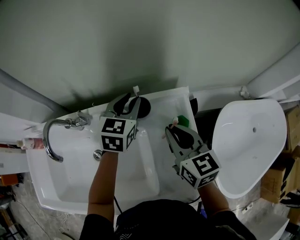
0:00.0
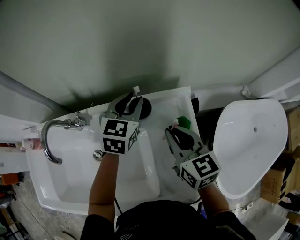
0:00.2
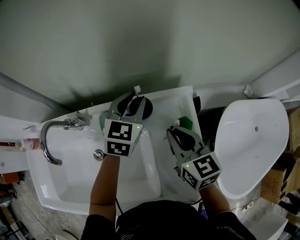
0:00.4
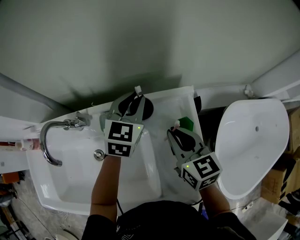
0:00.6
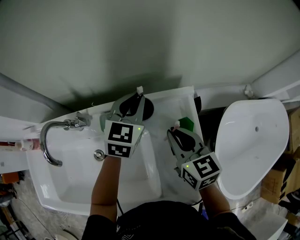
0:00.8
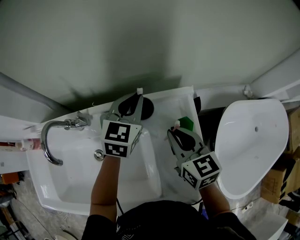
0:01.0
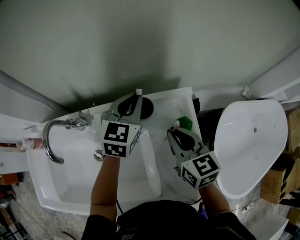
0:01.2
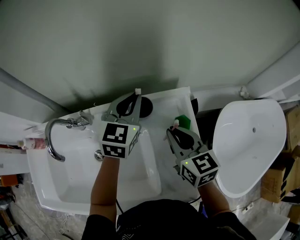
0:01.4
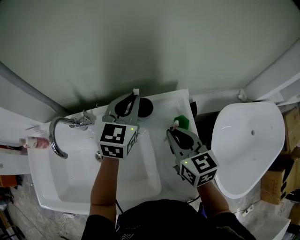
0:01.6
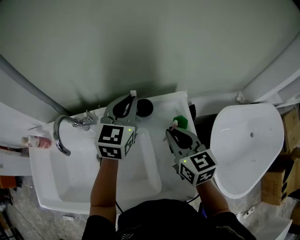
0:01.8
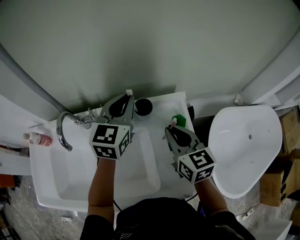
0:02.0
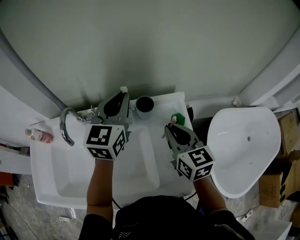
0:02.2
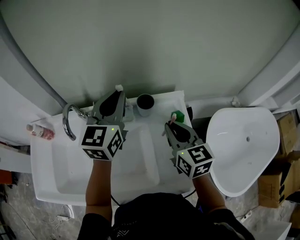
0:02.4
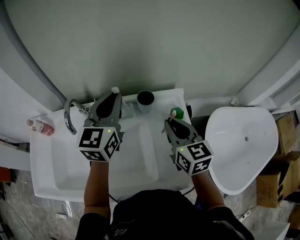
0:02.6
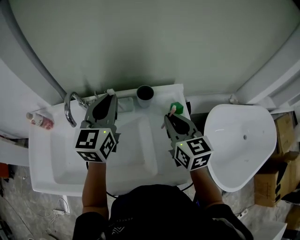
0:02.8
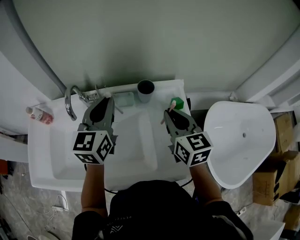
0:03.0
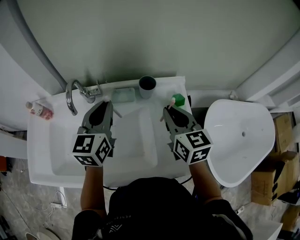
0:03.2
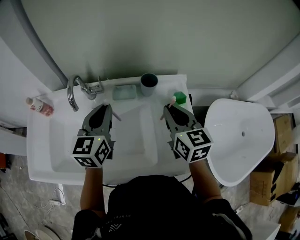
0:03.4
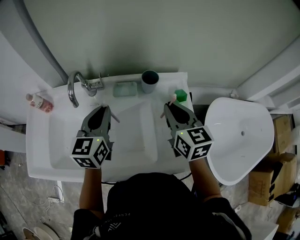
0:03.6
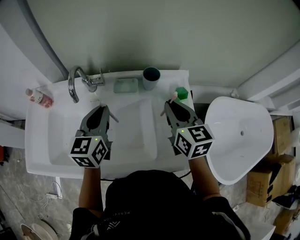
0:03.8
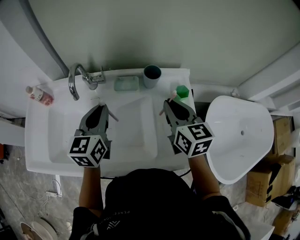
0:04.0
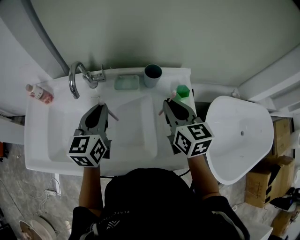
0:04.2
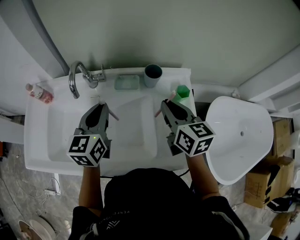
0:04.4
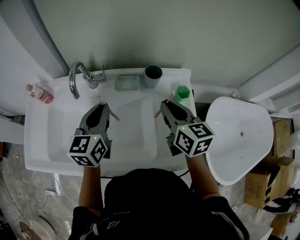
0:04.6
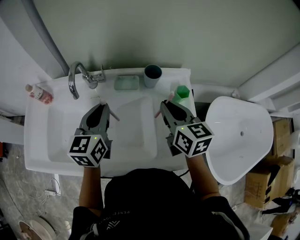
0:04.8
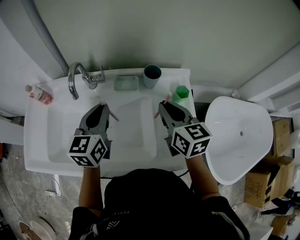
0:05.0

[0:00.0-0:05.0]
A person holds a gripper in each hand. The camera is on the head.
0:00.0 to 0:01.6: The left gripper goes roughly 5 cm upward, and closes.
0:01.6 to 0:03.4: The right gripper heads backward and upward, covering approximately 10 cm; the left gripper goes roughly 20 cm backward and to the left.
0:03.4 to 0:05.0: The grippers move only a little.

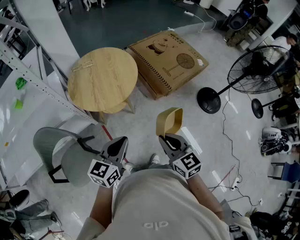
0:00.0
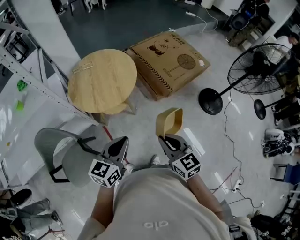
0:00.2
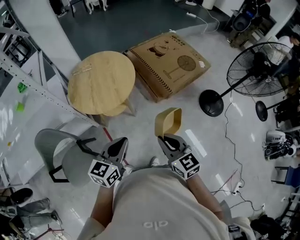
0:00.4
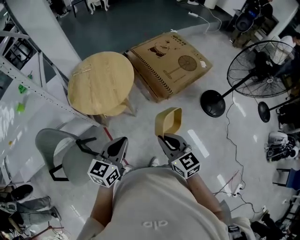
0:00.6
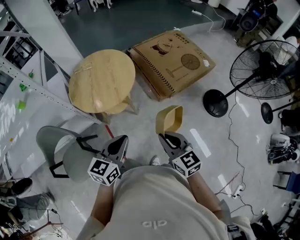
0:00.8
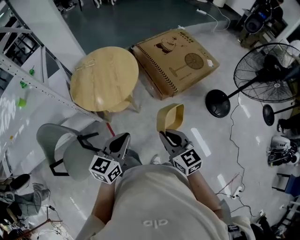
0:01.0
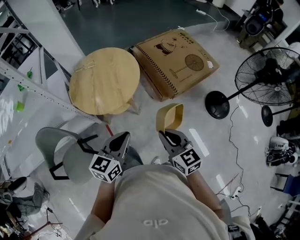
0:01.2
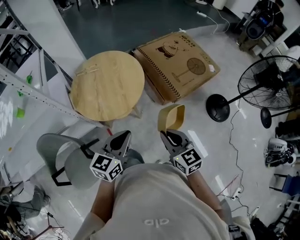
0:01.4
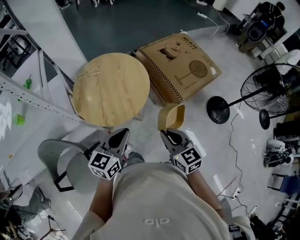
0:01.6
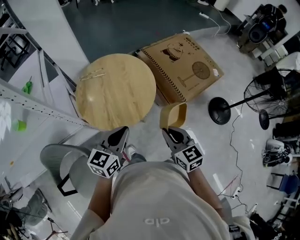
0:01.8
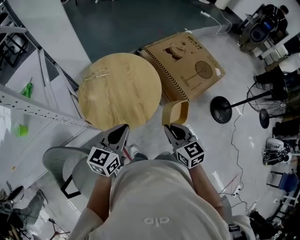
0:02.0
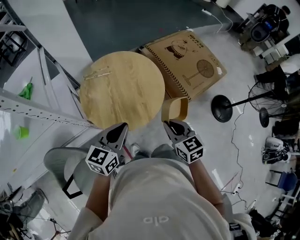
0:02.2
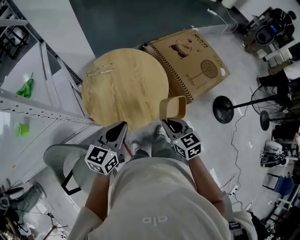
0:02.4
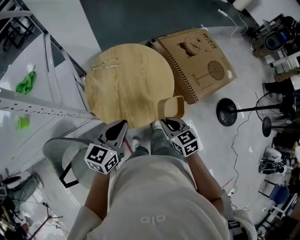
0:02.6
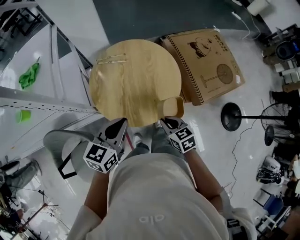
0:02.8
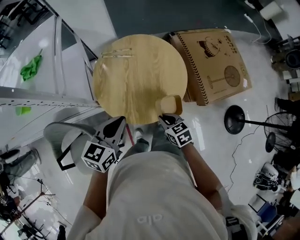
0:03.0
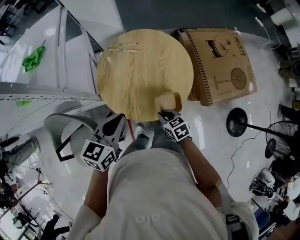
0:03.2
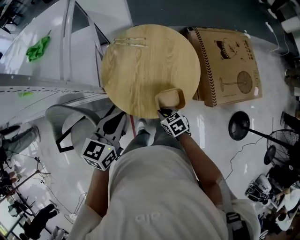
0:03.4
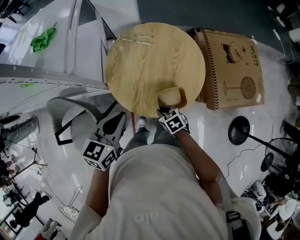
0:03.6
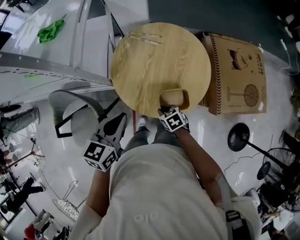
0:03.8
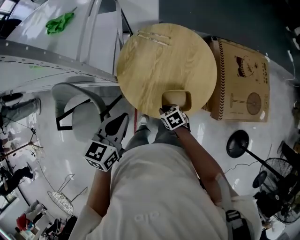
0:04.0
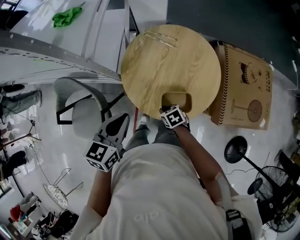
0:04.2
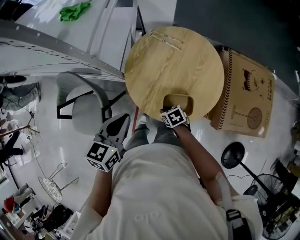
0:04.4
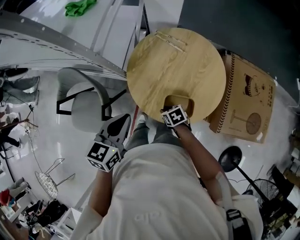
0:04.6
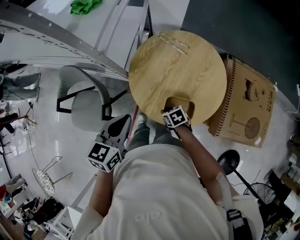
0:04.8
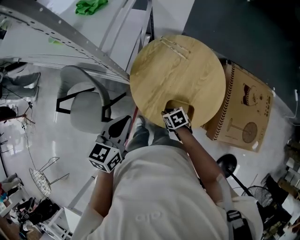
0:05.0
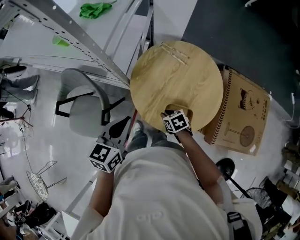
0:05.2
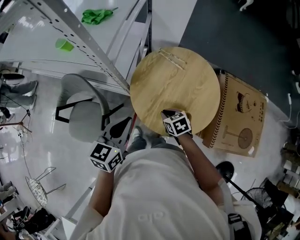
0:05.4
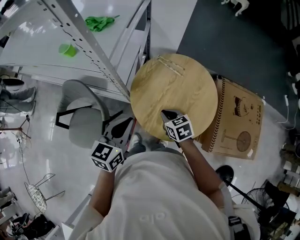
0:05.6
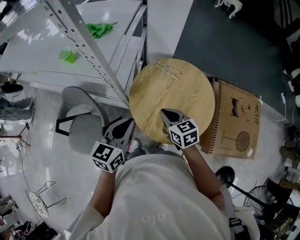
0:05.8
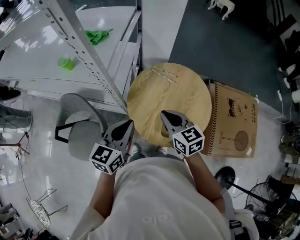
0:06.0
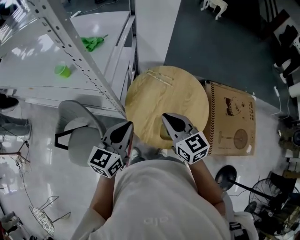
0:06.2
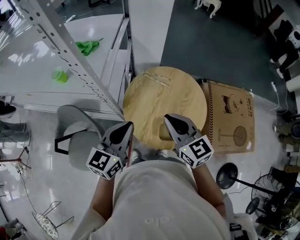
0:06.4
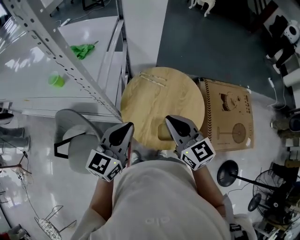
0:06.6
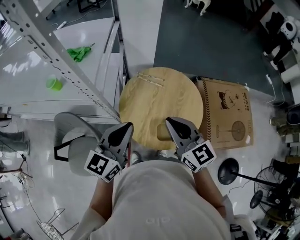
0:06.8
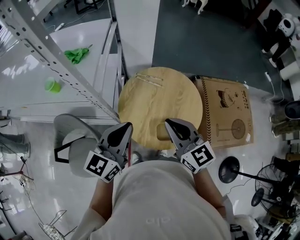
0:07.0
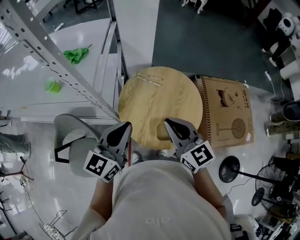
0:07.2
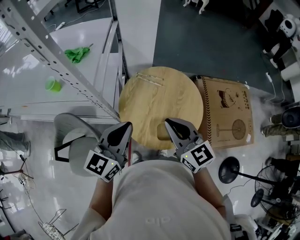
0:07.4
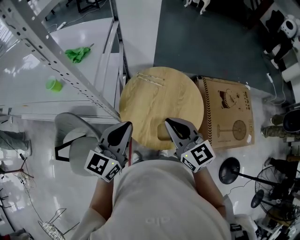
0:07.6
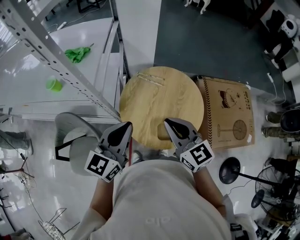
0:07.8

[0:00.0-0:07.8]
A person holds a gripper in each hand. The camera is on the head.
0:00.0 to 0:01.6: The two grippers go approximately 15 cm forward.
0:01.6 to 0:03.2: The left gripper moves some 20 cm, and changes its angle by roughly 20 degrees, while the right gripper moves some 30 cm, and swivels approximately 40 degrees.
0:03.2 to 0:04.6: The left gripper ends up roughly 5 cm from where it was, and swivels approximately 30 degrees. Meanwhile the right gripper is displaced downward by roughly 10 cm, and turns by some 30 degrees.
0:04.6 to 0:06.2: The left gripper travels upward and forward by roughly 10 cm. The right gripper is displaced upward by some 35 cm, and angles its fingers upward, by roughly 40 degrees.
0:06.2 to 0:07.8: The right gripper ends up some 5 cm from where it was; the left gripper moves approximately 5 cm.

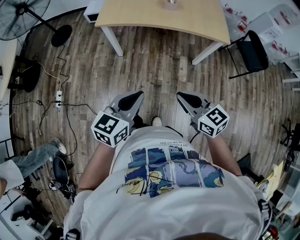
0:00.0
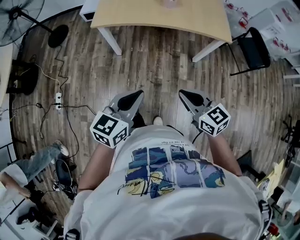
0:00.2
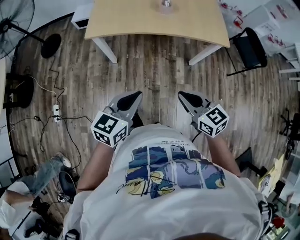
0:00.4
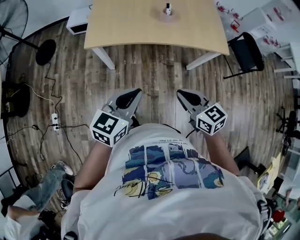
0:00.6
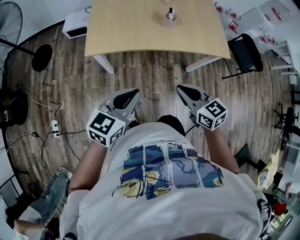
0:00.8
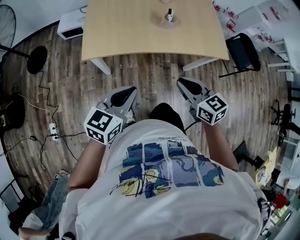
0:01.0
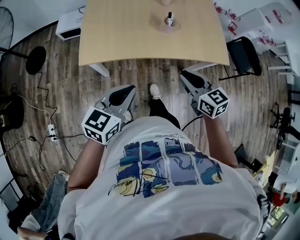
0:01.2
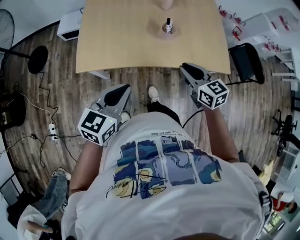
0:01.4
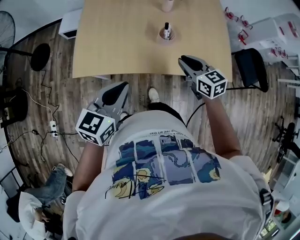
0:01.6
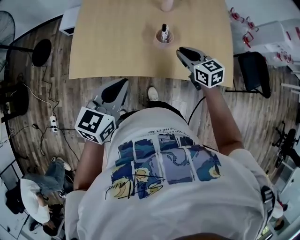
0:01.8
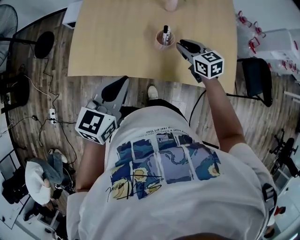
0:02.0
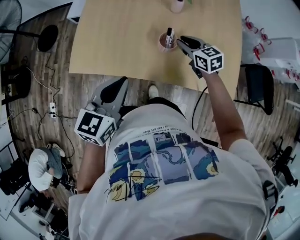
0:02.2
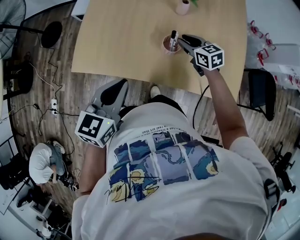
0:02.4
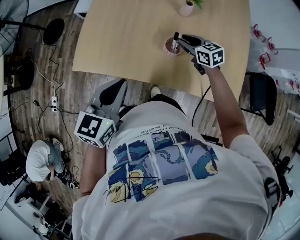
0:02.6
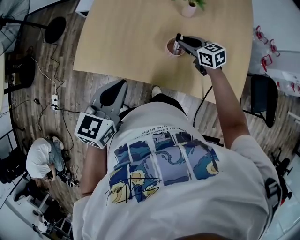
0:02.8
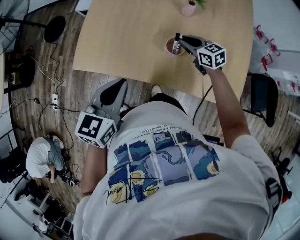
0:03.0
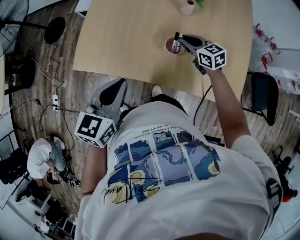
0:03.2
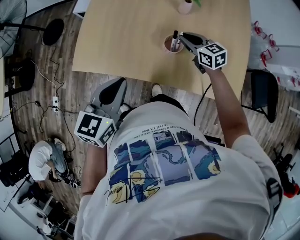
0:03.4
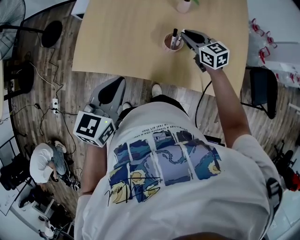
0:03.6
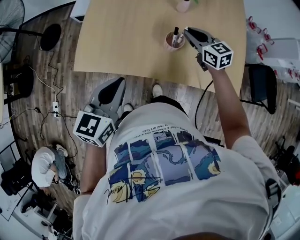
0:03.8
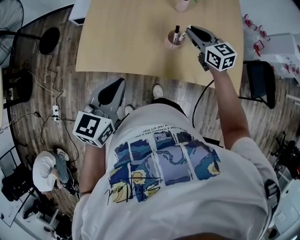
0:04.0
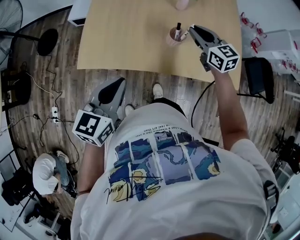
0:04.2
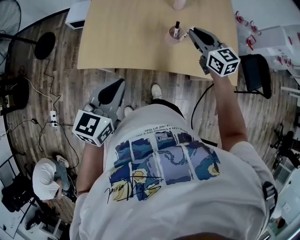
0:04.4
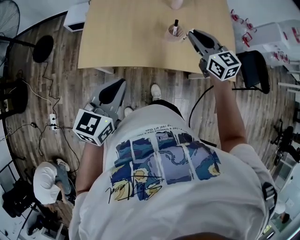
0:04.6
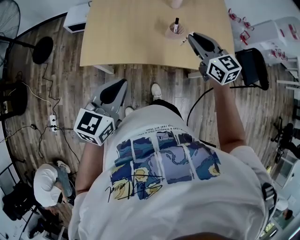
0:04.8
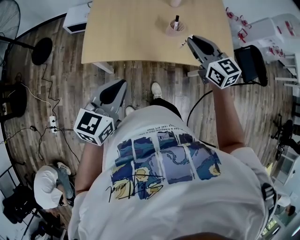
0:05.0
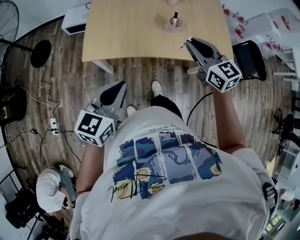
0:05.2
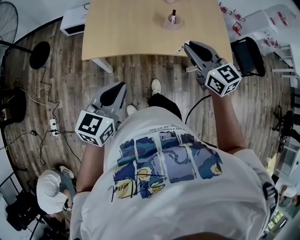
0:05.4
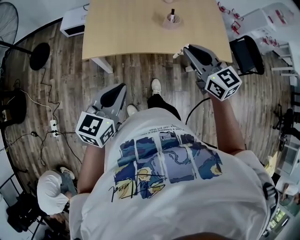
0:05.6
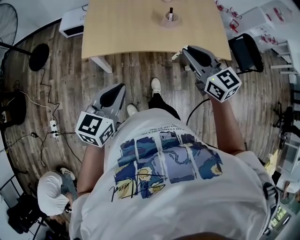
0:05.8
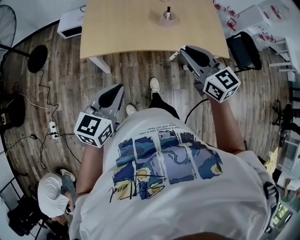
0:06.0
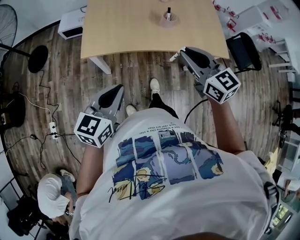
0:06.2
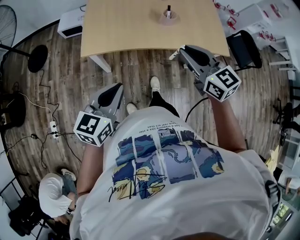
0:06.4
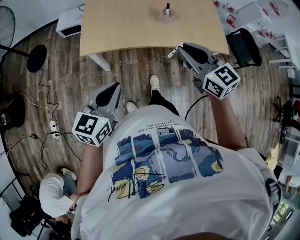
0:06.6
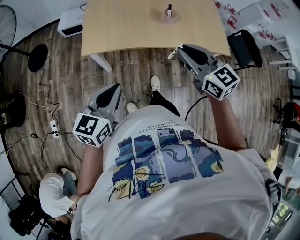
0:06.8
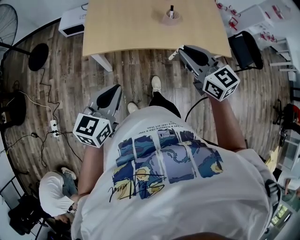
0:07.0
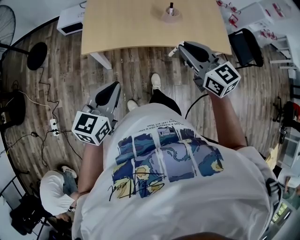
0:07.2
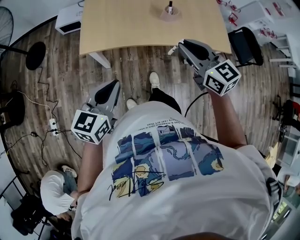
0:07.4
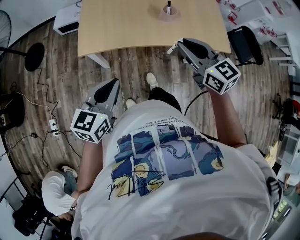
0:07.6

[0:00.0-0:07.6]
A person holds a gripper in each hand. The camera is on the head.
0:00.0 to 0:01.6: Both grippers are carried forward, some 50 cm.
0:01.6 to 0:03.0: The right gripper moves forward and downward, about 20 cm, and turns by about 20 degrees. Meanwhile the left gripper shifts about 5 cm forward.
0:03.0 to 0:04.6: The left gripper goes roughly 10 cm to the left and backward. The right gripper travels upward and backward by roughly 20 cm, and swivels some 30 degrees.
0:04.6 to 0:06.0: The left gripper goes some 15 cm backward and to the left, while the right gripper moves backward, some 20 cm.
0:06.0 to 0:07.6: The grippers move only a little.

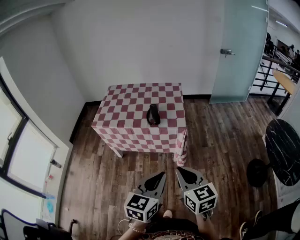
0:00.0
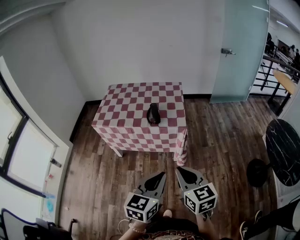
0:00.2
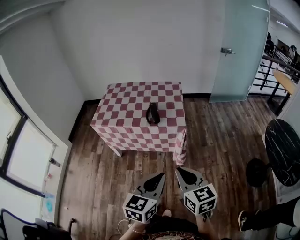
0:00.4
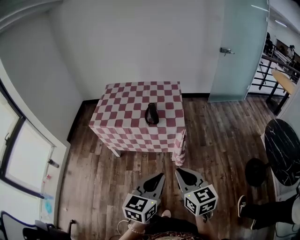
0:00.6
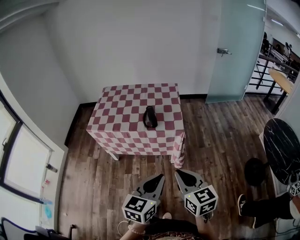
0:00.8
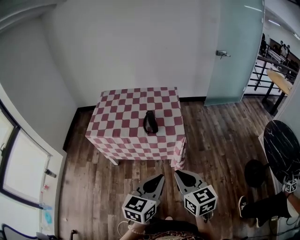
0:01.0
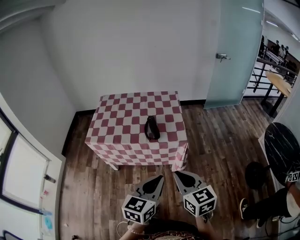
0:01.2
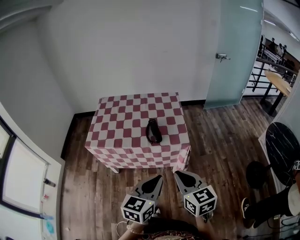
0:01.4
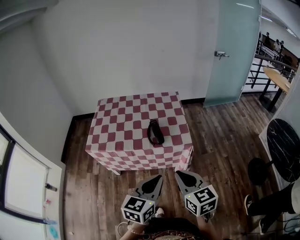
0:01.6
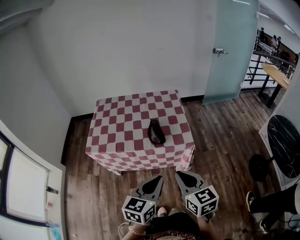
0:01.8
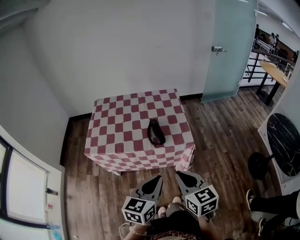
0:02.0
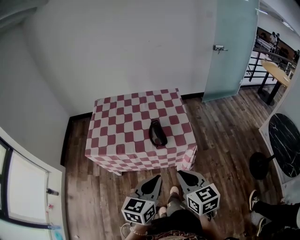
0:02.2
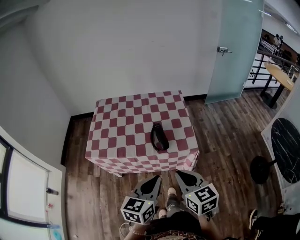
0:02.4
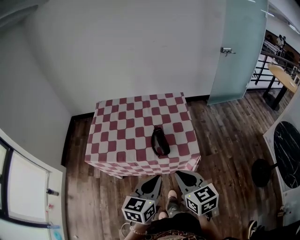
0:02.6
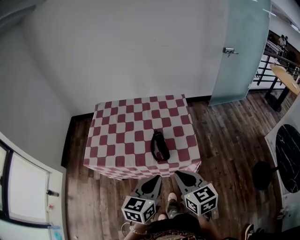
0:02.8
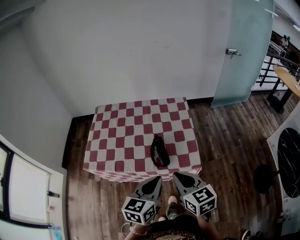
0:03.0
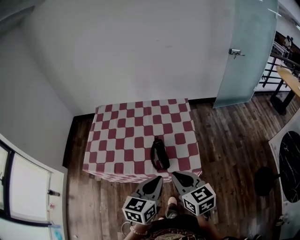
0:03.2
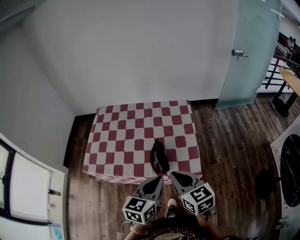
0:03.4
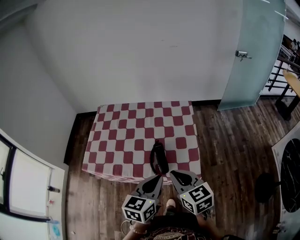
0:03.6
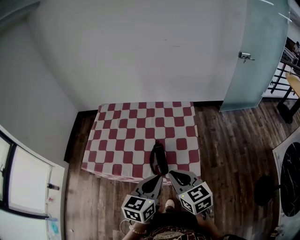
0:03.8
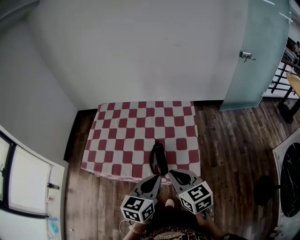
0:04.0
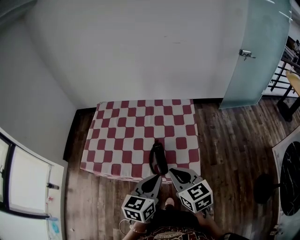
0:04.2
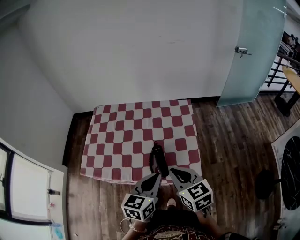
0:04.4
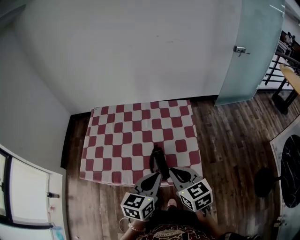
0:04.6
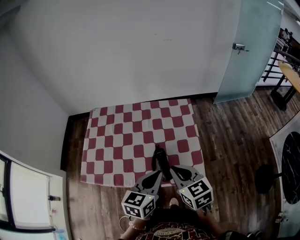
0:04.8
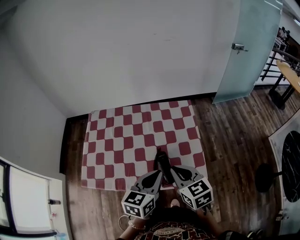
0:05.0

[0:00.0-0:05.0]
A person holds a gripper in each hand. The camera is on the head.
0:00.0 to 0:01.6: The two grippers go roughly 15 cm forward and to the left.
0:01.6 to 0:03.4: Both grippers move forward, some 25 cm.
0:03.4 to 0:05.0: Both grippers move forward, about 10 cm.
